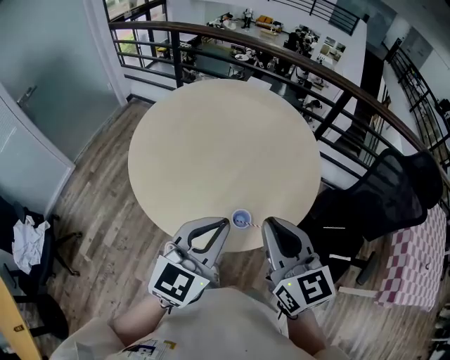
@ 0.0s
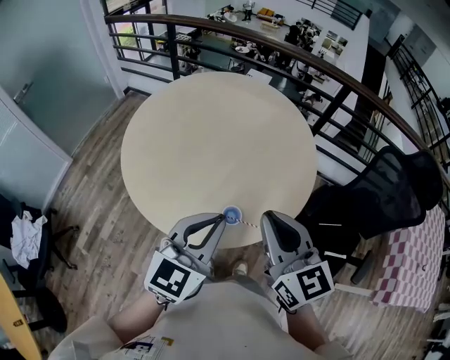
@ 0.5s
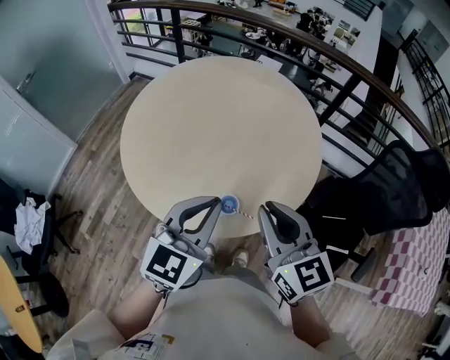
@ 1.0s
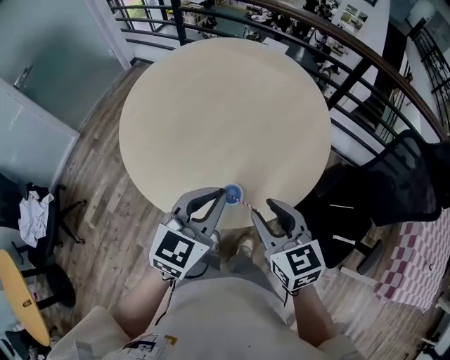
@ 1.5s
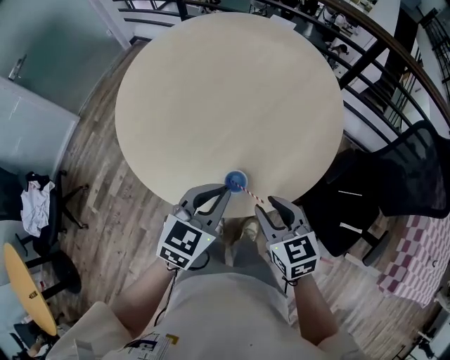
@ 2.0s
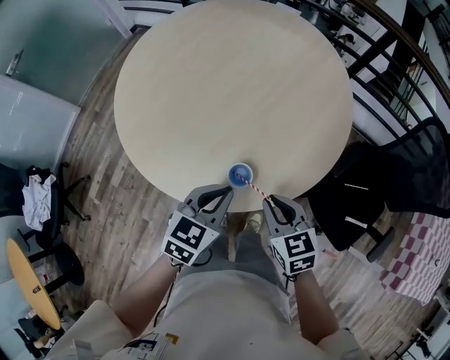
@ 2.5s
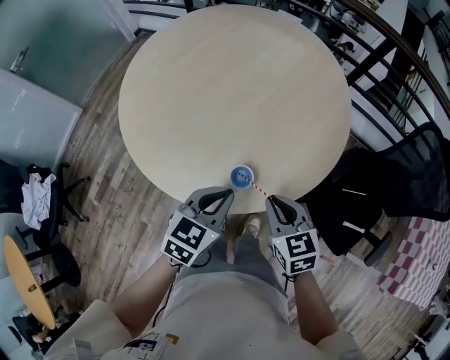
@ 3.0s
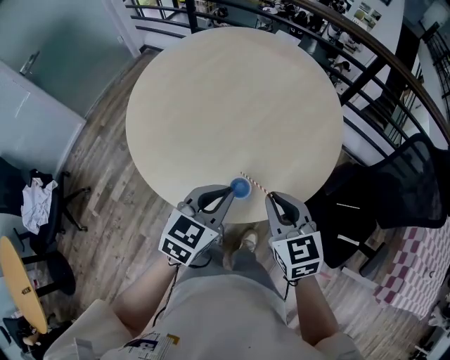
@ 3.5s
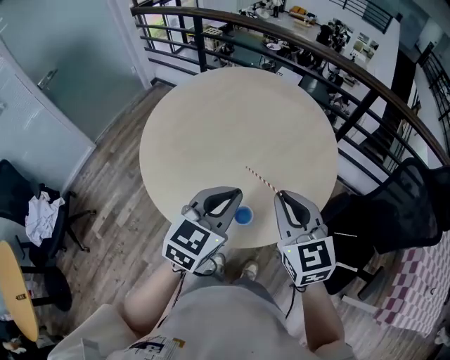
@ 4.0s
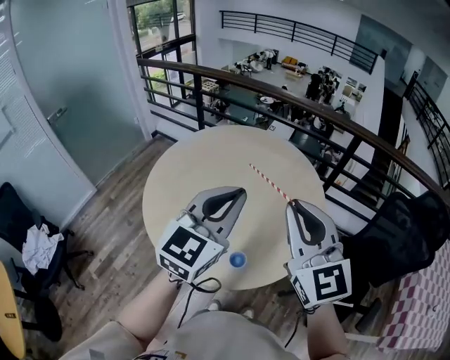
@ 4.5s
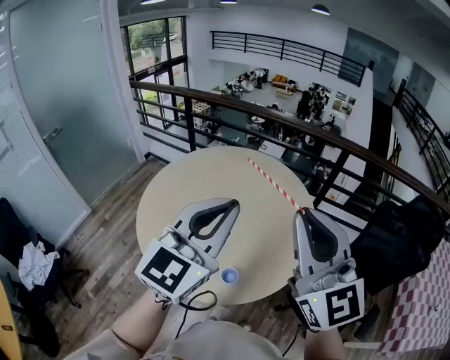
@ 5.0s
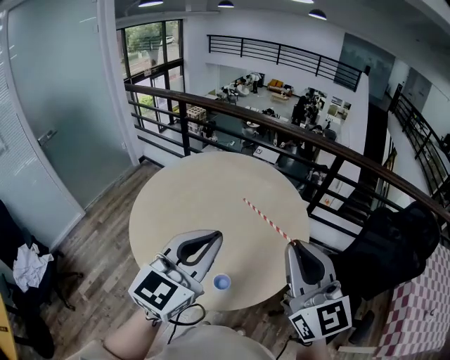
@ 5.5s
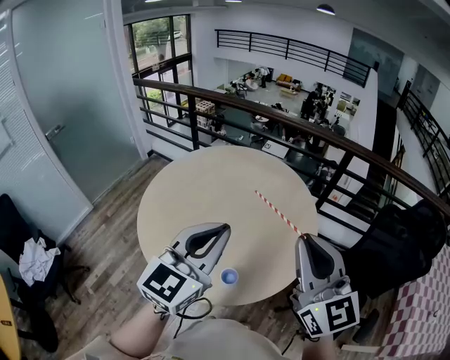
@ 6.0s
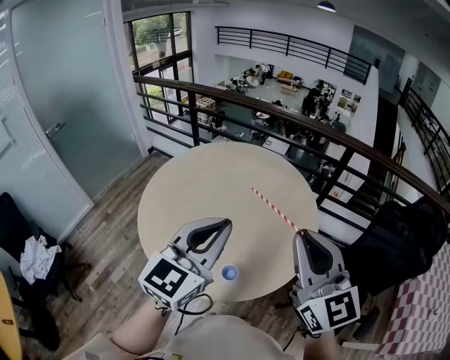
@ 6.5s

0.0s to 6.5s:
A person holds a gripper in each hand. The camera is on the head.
0.0s to 2.0s: Both grippers travel together downward, roughly 20 cm. The left gripper rotates roughly 20 degrees. Meanwhile the right gripper swivels roughly 30 degrees, and opens its fingers.
2.0s to 4.5s: The grippers both shift upward by approximately 30 cm. The right gripper angles its fingers upward, by roughly 40 degrees, and closes. The left gripper turns by roughly 30 degrees.
4.5s to 6.5s: The right gripper shifts some 5 cm to the right, and travels upward and back again, about 10 cm each way.

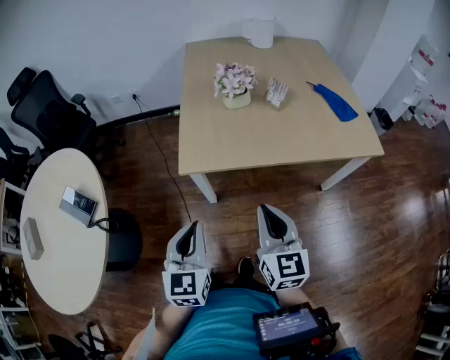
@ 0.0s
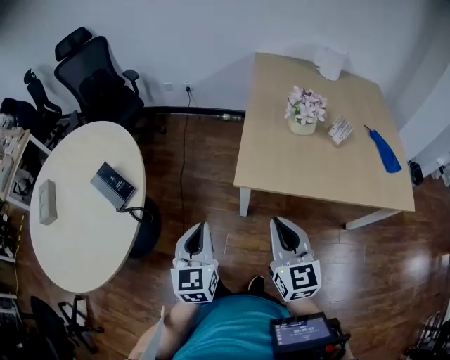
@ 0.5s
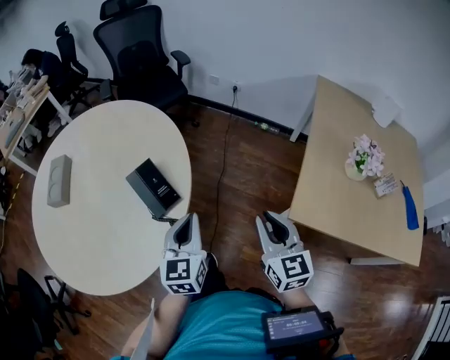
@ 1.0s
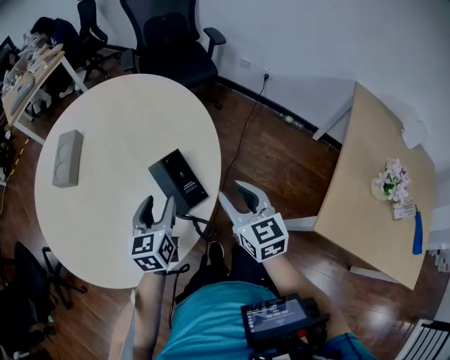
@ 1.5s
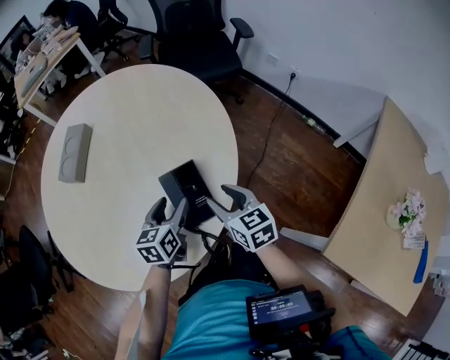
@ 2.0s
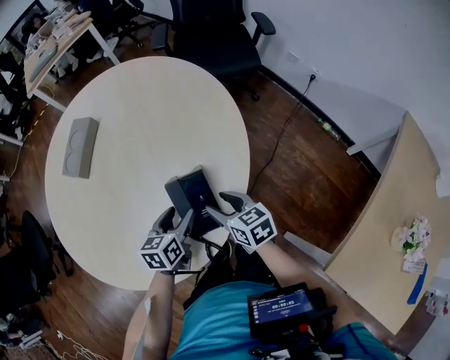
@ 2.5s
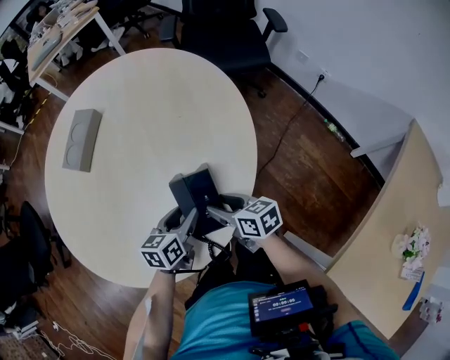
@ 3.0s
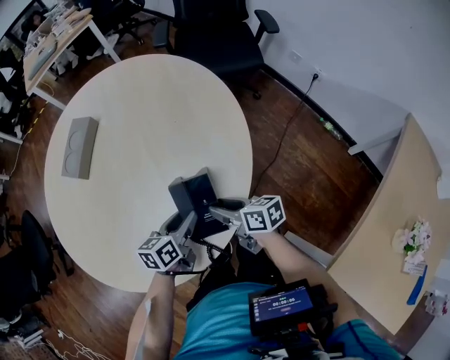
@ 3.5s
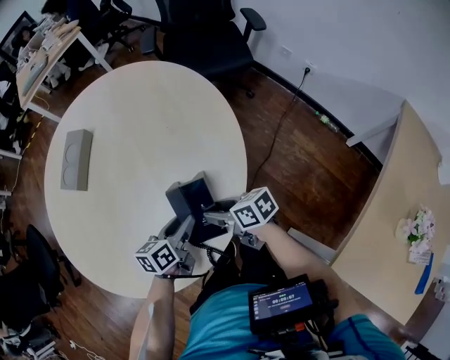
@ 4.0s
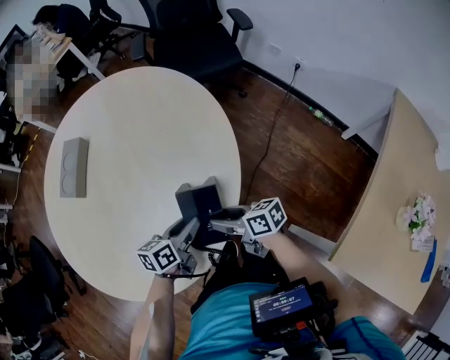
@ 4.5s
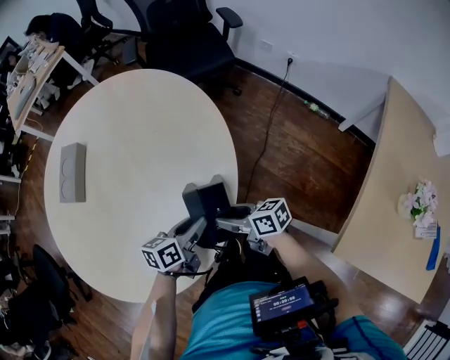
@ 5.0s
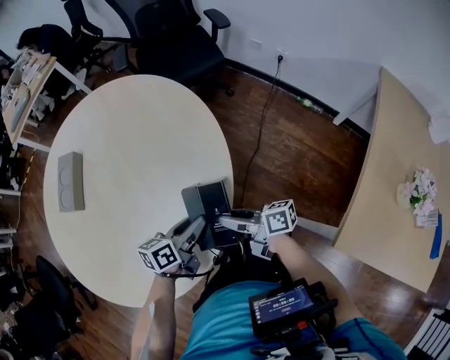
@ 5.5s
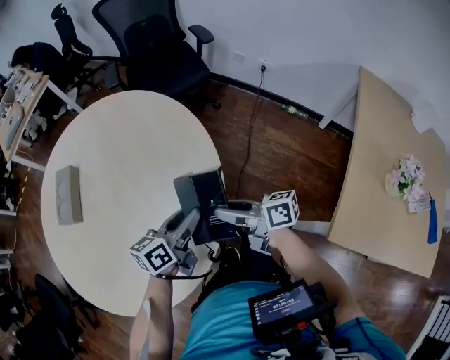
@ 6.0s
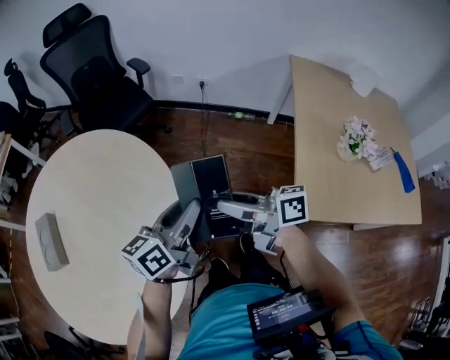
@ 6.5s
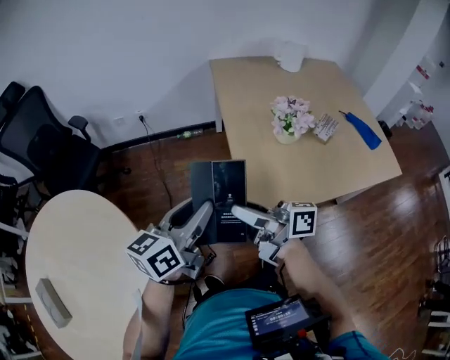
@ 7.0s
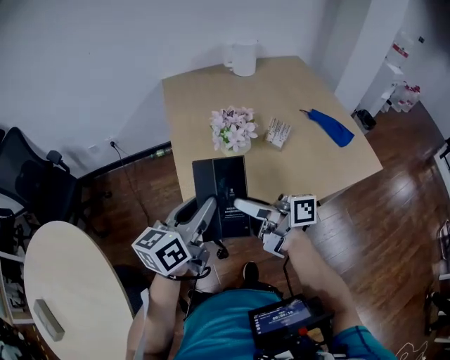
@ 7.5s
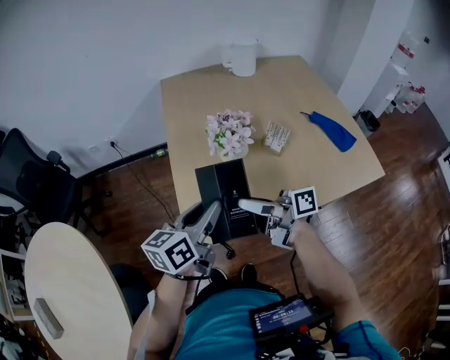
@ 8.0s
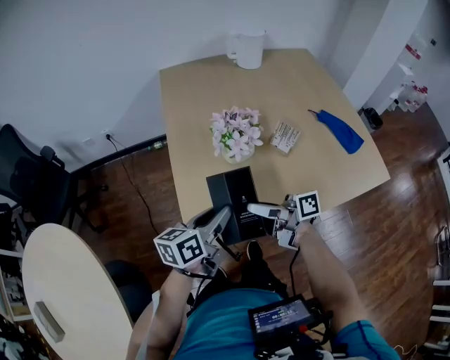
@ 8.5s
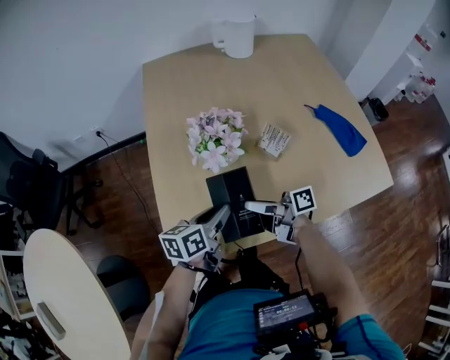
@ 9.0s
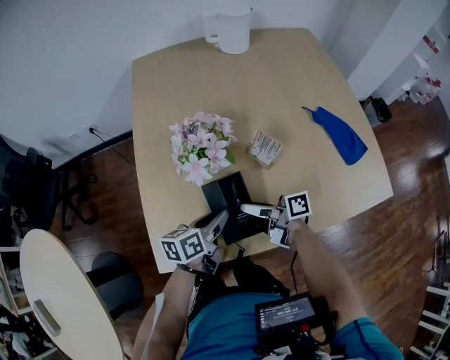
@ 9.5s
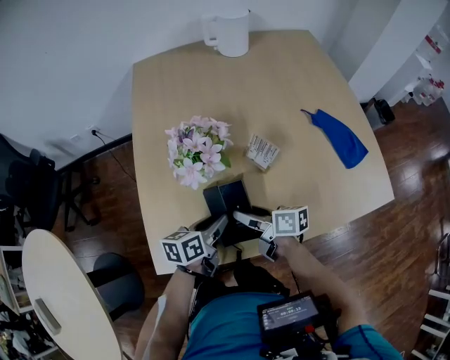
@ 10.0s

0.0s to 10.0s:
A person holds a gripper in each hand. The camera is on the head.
0.0s to 2.0s: The two grippers travel together, approximately 70 cm. The right gripper changes its angle by some 70 degrees, and opens its fingers; the left gripper changes its angle by some 50 degrees, and opens up.
2.0s to 4.0s: The left gripper turns by roughly 20 degrees, and closes; the right gripper heads downward, covering approximately 5 cm, and rotates some 40 degrees.
4.0s to 6.0s: Both grippers travel together upward and to the right, roughly 15 cm. The left gripper turns by about 30 degrees, while the right gripper changes its angle by about 30 degrees.
6.0s to 8.0s: The pair of grippers is taken some 60 cm. The left gripper changes its angle by approximately 40 degrees. Meanwhile the right gripper changes its angle by approximately 40 degrees.
8.0s to 10.0s: The right gripper is displaced downward, to the right and forward by approximately 25 cm, and changes its angle by some 30 degrees; the left gripper moves downward and to the right, roughly 25 cm, and swivels roughly 20 degrees.

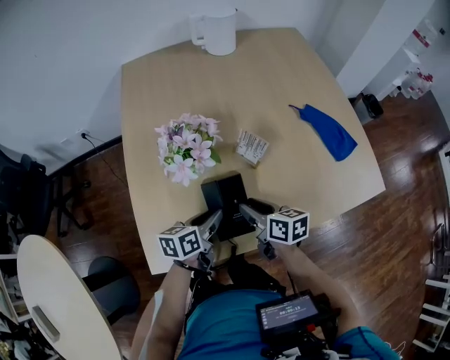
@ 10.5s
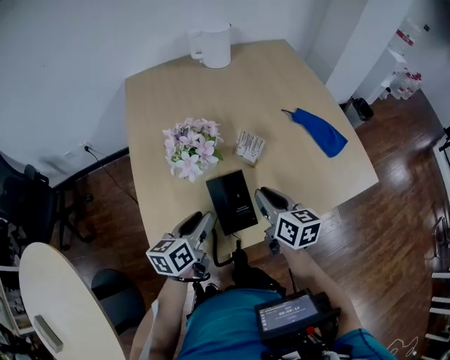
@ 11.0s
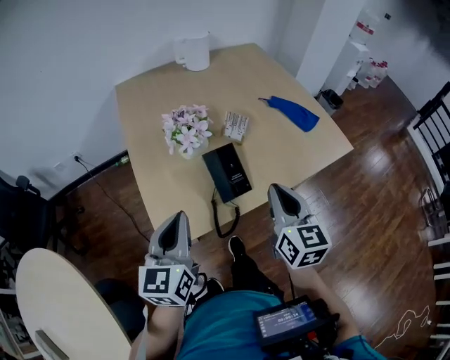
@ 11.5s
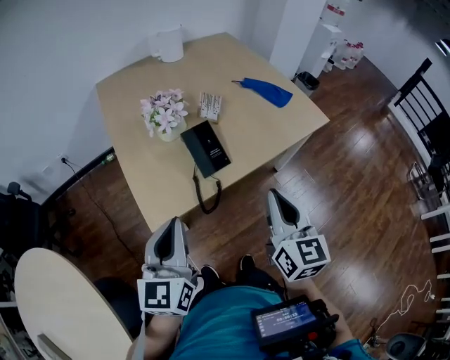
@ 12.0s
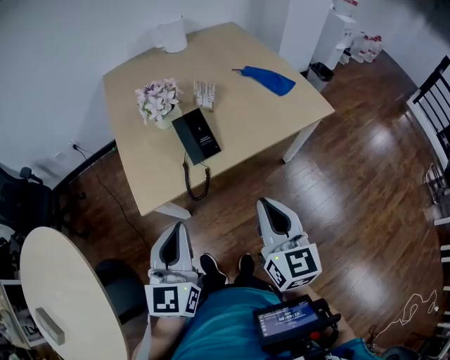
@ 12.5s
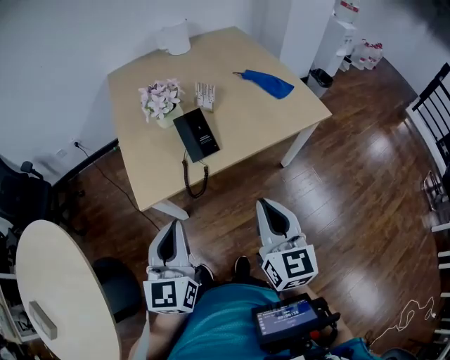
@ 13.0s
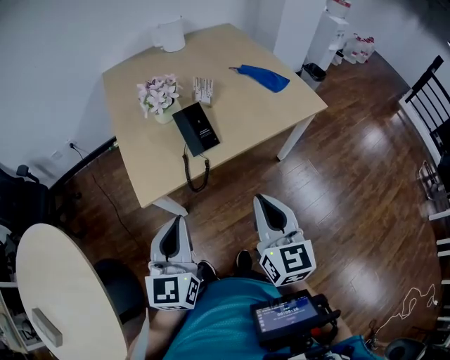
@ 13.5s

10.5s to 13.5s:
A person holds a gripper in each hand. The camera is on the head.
10.5s to 12.0s: The left gripper travels upward and backward by some 35 cm, rotates some 50 degrees, and closes up; the right gripper is displaced backward and upward by about 35 cm, changes its angle by some 60 degrees, and closes.
12.0s to 13.5s: The right gripper heads backward, covering roughly 10 cm. Meanwhile the left gripper heads backward and to the right, covering some 10 cm.

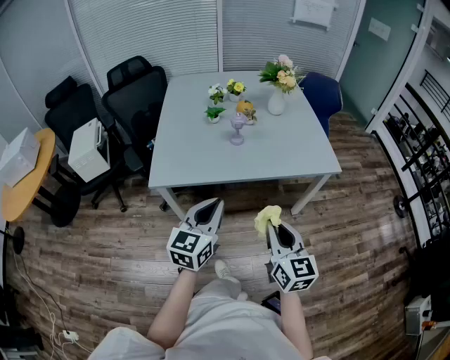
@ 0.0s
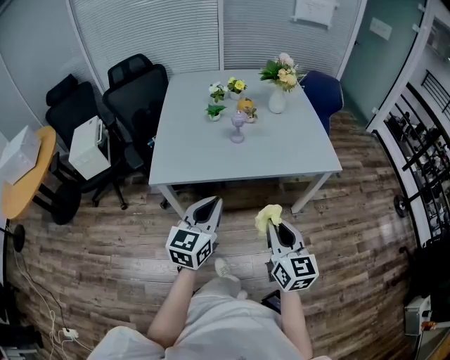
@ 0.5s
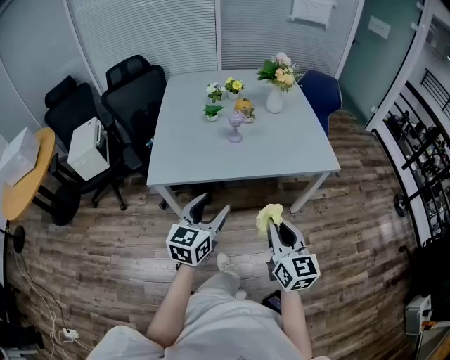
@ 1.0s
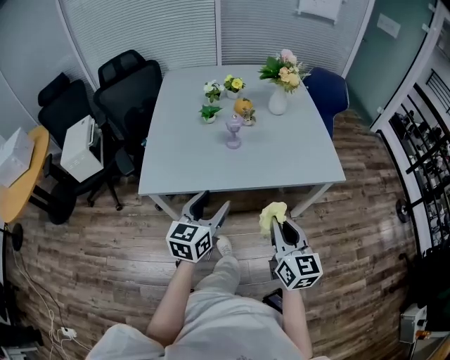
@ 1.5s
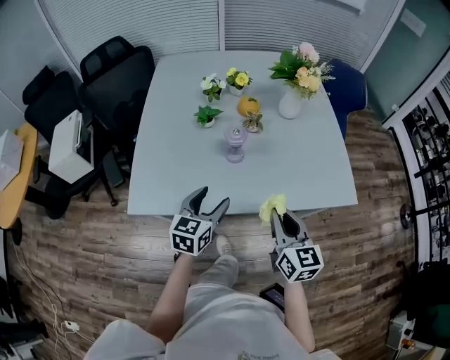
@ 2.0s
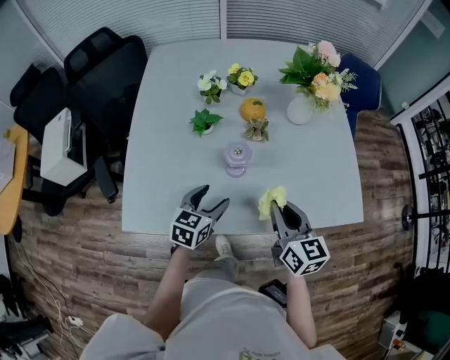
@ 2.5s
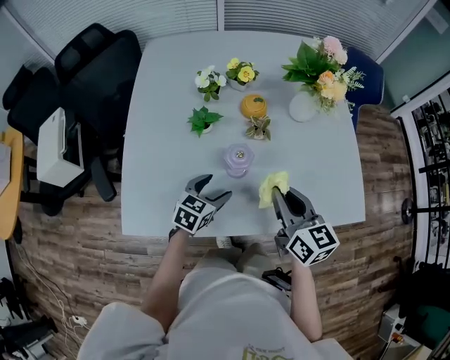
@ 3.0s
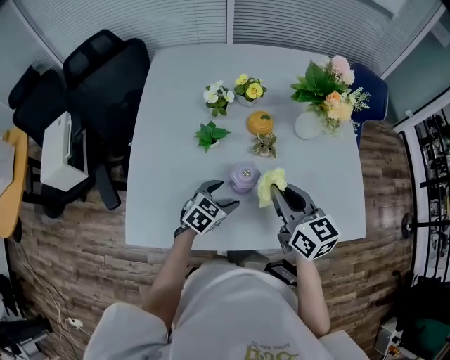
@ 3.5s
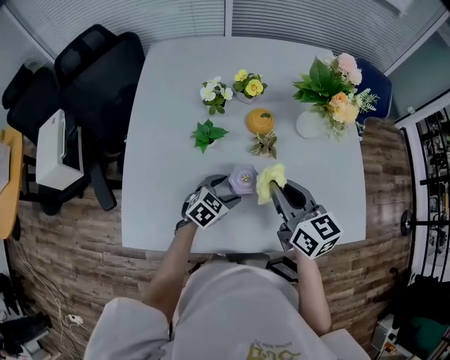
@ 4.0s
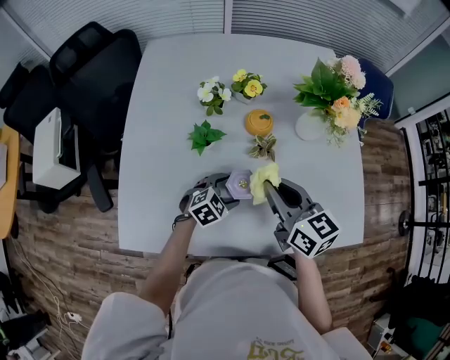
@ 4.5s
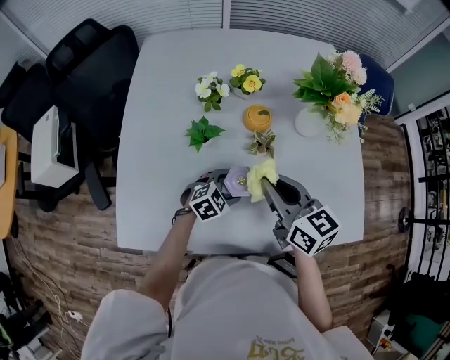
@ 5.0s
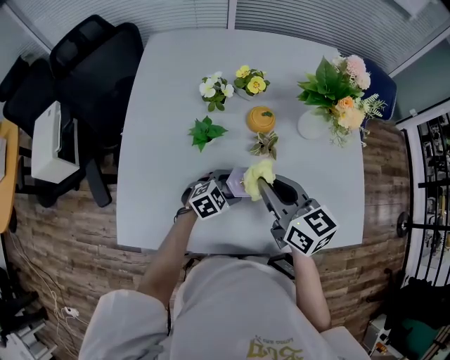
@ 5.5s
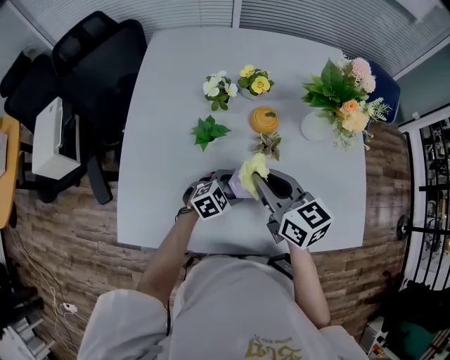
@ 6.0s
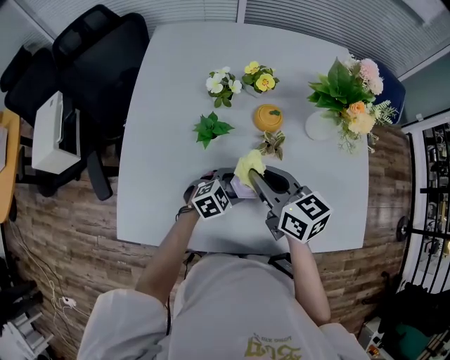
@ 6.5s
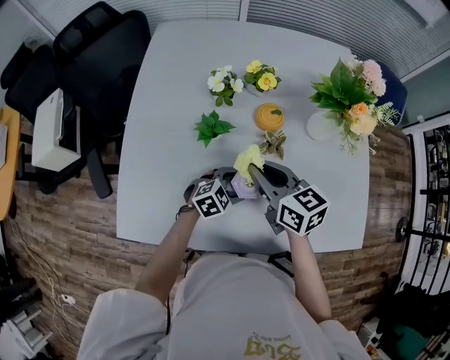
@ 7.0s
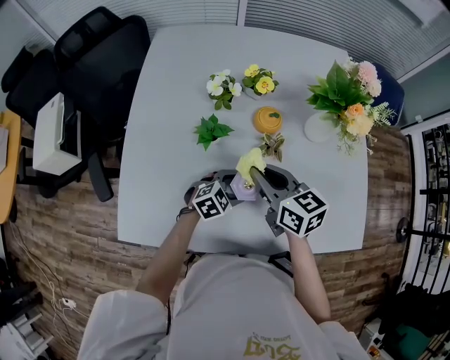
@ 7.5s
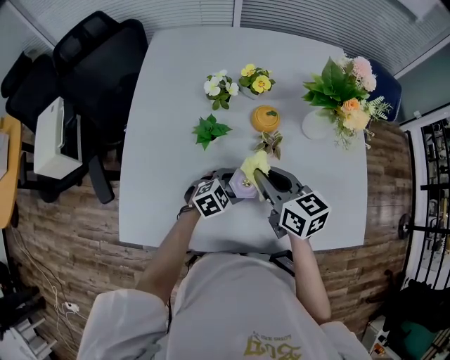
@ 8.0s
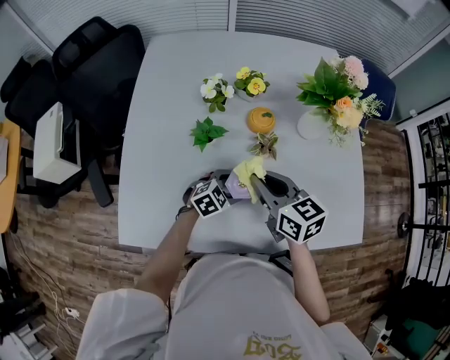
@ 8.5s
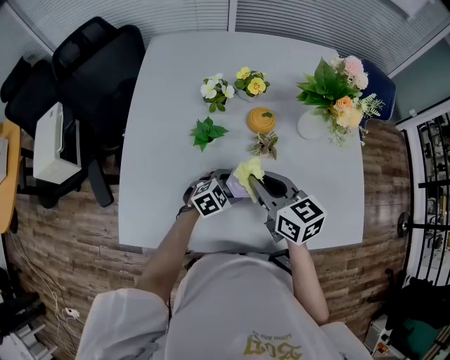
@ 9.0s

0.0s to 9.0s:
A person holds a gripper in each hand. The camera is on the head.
0.0s to 2.0s: The right gripper travels forward by some 30 cm, while the left gripper goes roughly 30 cm forward and downward, and opens.
2.0s to 4.5s: The right gripper travels forward by roughly 25 cm; the left gripper is displaced forward and downward by approximately 25 cm, and rotates approximately 50 degrees.
4.5s to 7.0s: The right gripper is displaced to the left by roughly 5 cm.
7.0s to 9.0s: The grippers move only a little.
